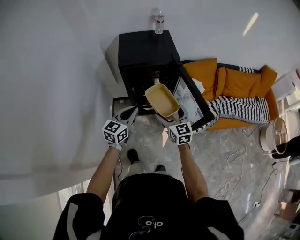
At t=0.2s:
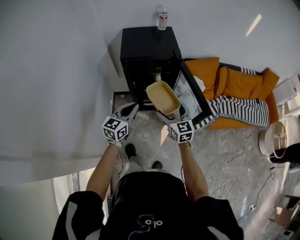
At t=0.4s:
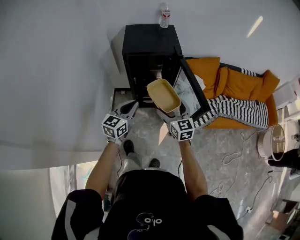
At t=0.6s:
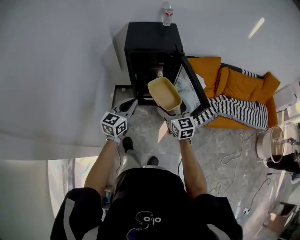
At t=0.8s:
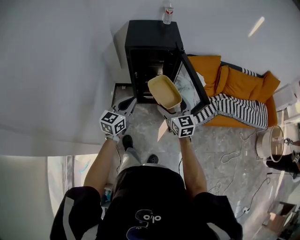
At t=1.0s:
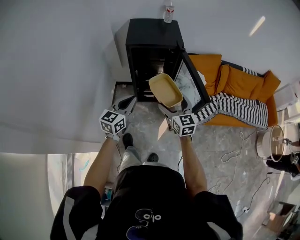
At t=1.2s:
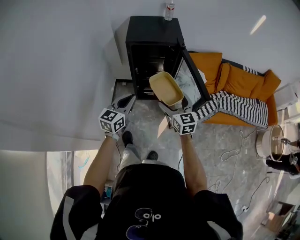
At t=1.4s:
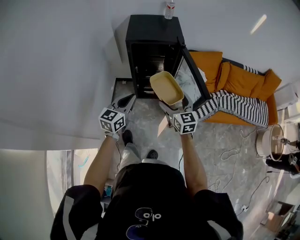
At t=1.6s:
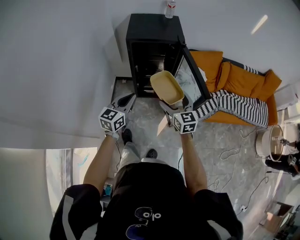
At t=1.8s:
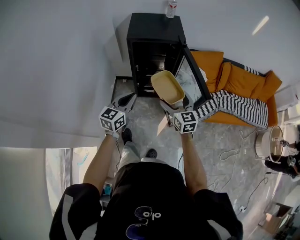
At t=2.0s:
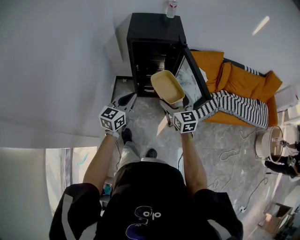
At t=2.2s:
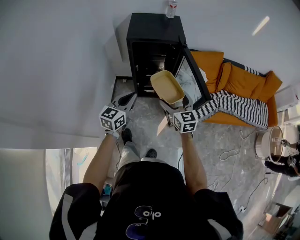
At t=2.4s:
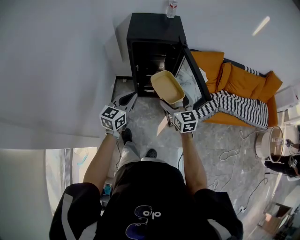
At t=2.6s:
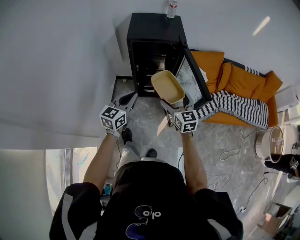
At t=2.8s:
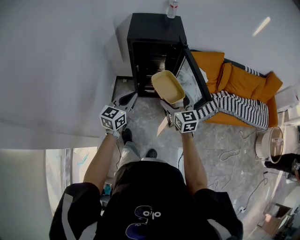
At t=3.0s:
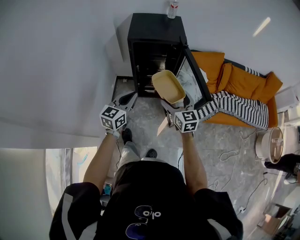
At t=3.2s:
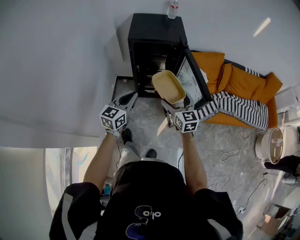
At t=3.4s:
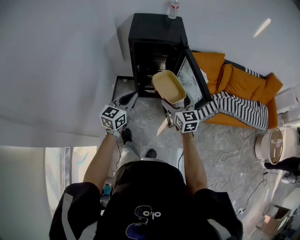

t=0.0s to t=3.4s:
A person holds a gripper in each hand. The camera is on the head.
t=0.0s to t=1.6s: The grippers both shift backward by approximately 10 cm.
t=1.6s to t=3.4s: Neither gripper changes place.

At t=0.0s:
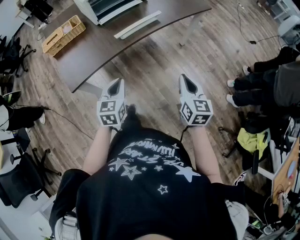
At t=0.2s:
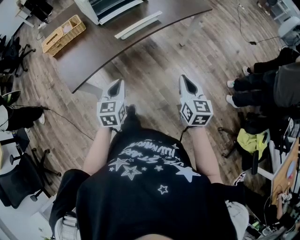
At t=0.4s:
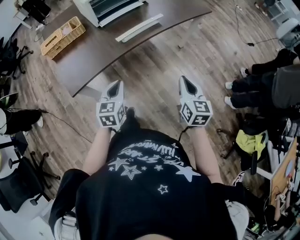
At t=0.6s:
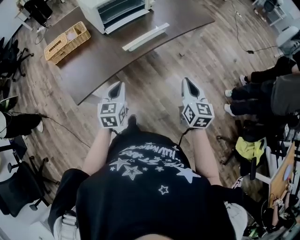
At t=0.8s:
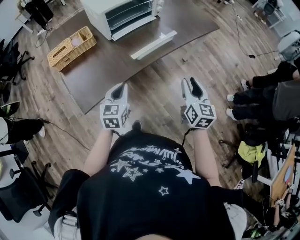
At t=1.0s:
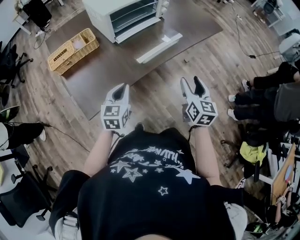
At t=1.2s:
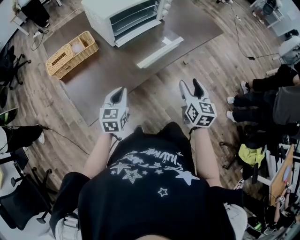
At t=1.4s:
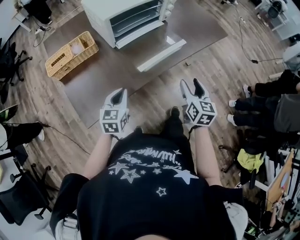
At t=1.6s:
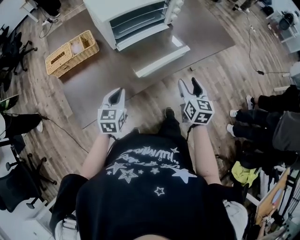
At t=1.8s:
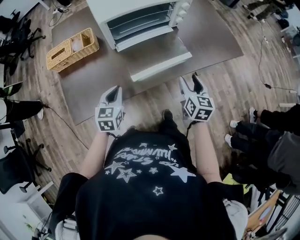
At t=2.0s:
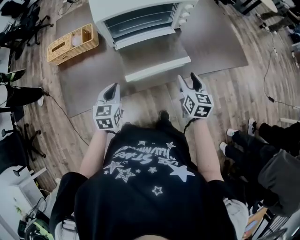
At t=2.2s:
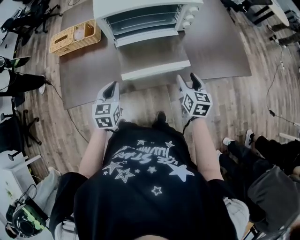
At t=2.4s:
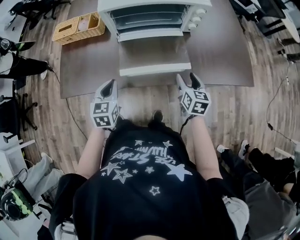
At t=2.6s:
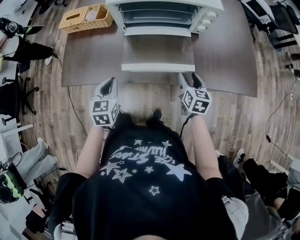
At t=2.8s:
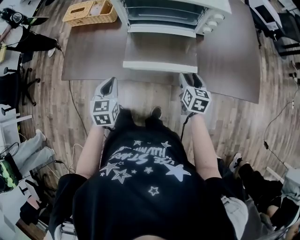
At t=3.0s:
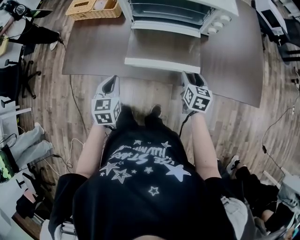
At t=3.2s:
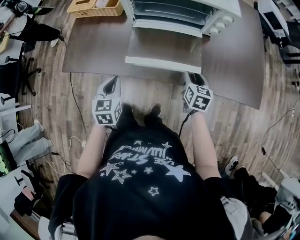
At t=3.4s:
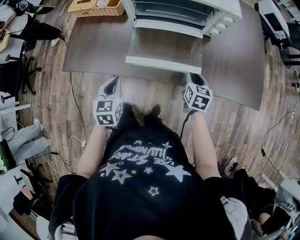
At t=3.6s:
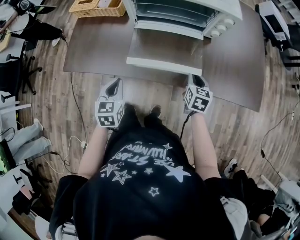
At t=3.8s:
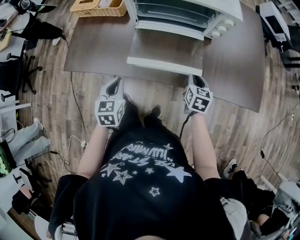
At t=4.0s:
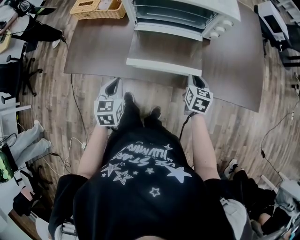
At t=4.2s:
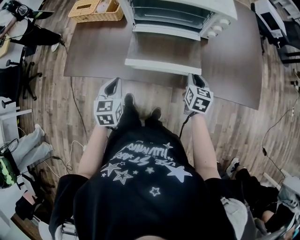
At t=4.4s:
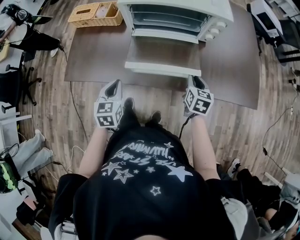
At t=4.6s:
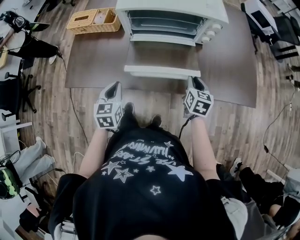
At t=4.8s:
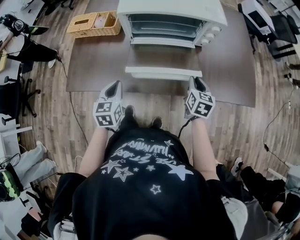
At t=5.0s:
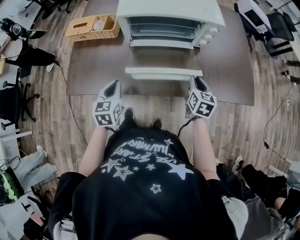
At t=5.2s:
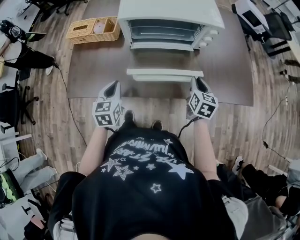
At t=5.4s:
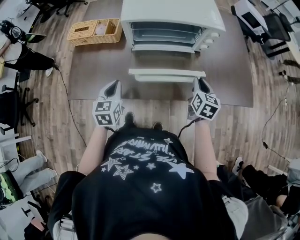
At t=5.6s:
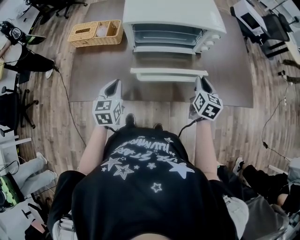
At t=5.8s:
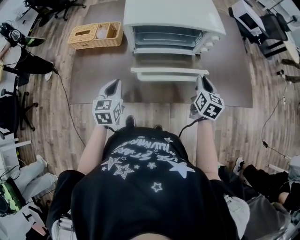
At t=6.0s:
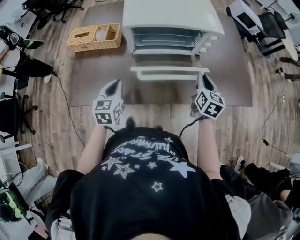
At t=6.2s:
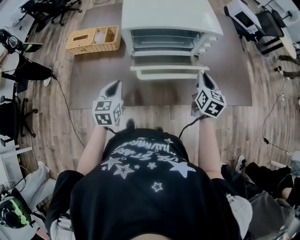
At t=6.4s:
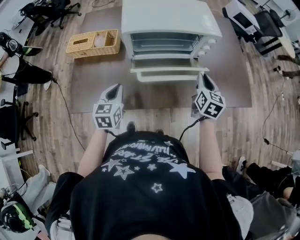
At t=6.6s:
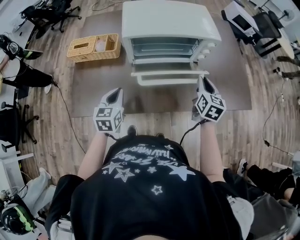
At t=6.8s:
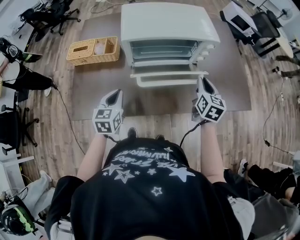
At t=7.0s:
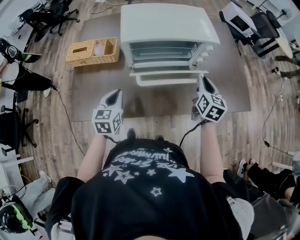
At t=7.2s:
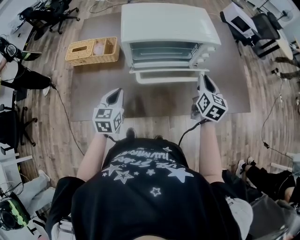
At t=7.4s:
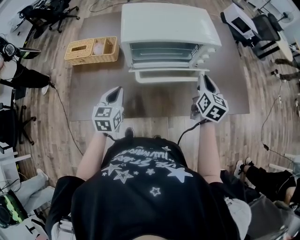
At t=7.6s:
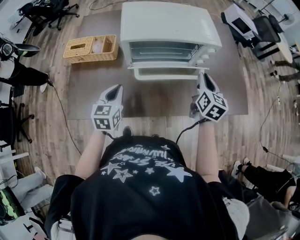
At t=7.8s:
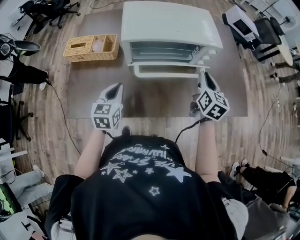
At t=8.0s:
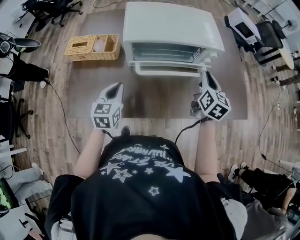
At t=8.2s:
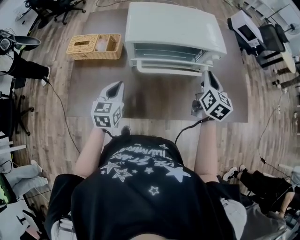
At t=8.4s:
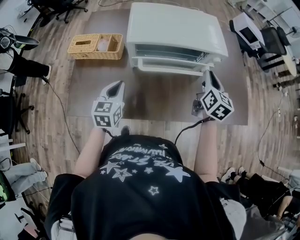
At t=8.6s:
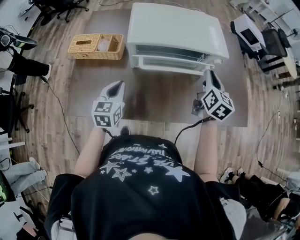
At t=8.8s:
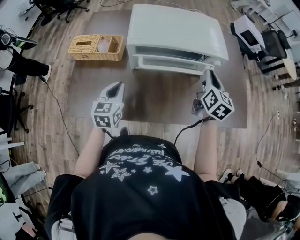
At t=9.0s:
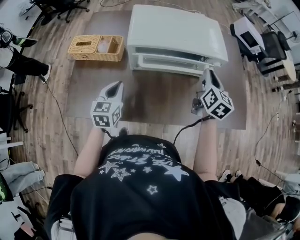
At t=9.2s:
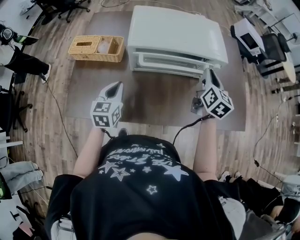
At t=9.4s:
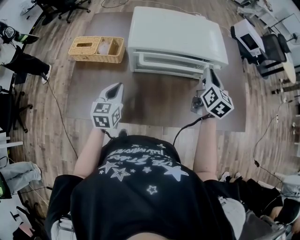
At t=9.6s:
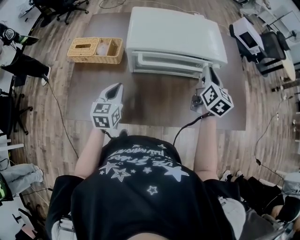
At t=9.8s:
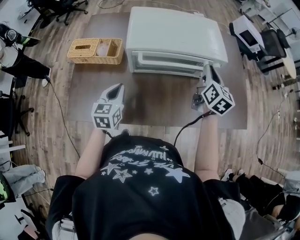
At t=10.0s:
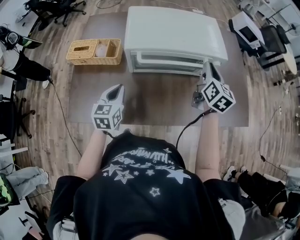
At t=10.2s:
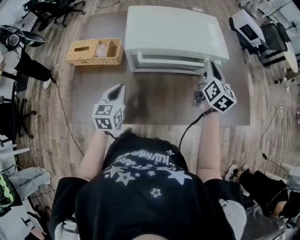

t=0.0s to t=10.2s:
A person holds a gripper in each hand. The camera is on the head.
t=0.0s to t=1.4s: Both grippers move forward and to the left, roughly 20 cm. The right gripper opens up.
t=1.4s to t=3.0s: The right gripper moves approximately 25 cm, and rotates about 40 degrees. The left gripper moves roughly 10 cm, and changes its angle by roughly 50 degrees.
t=3.0s to t=4.4s: The right gripper closes.
t=4.4s to t=5.8s: The left gripper is displaced forward by roughly 10 cm. The right gripper is displaced upward by some 10 cm.
t=5.8s to t=7.2s: The right gripper is displaced upward by roughly 5 cm.
t=7.2s to t=8.8s: The right gripper travels forward by approximately 5 cm.
t=8.8s to t=10.2s: The grippers stay close to where they were, moving slightly.

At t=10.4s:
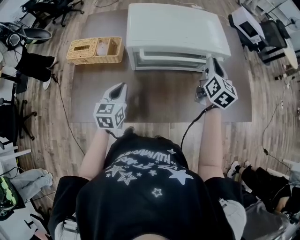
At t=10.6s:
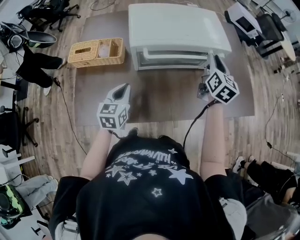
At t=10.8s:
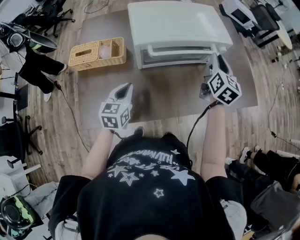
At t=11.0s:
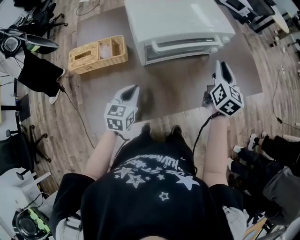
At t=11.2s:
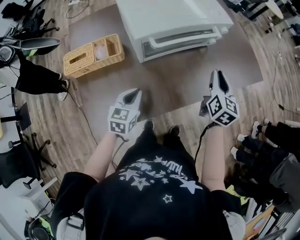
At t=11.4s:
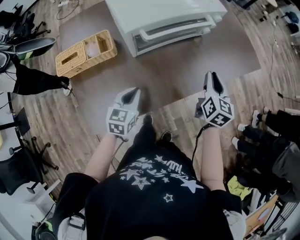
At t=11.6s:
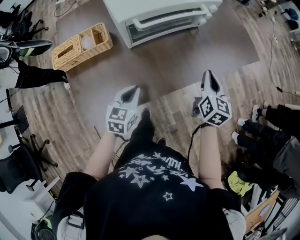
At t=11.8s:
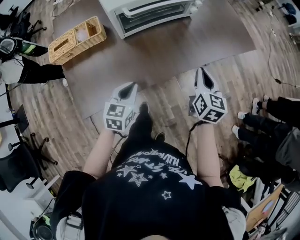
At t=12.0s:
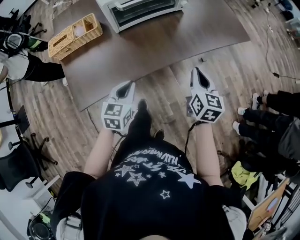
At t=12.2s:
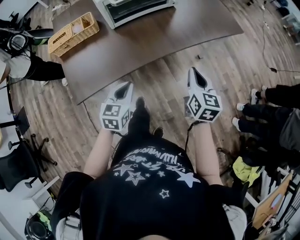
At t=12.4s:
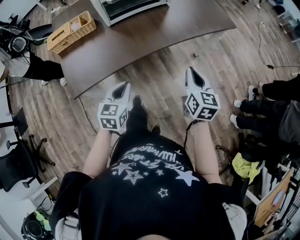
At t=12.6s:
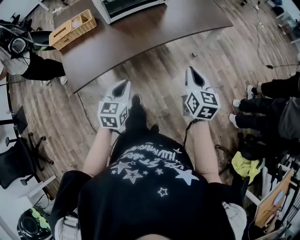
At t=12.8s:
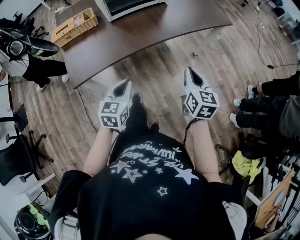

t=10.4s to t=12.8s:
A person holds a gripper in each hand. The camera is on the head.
t=10.4s to t=11.6s: The right gripper ends up some 25 cm from where it was, and turns by about 20 degrees; the left gripper ends up approximately 10 cm from where it was, and changes its angle by roughly 30 degrees.
t=11.6s to t=12.8s: Both grippers move backward and to the right, approximately 25 cm.

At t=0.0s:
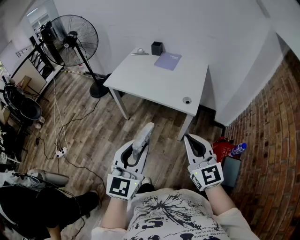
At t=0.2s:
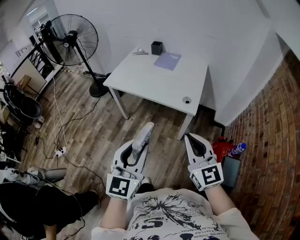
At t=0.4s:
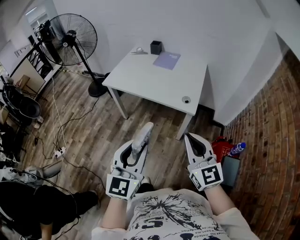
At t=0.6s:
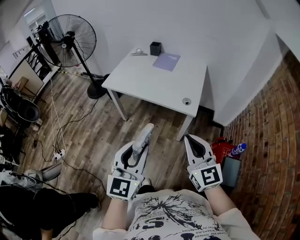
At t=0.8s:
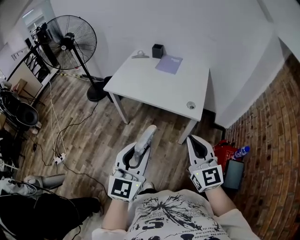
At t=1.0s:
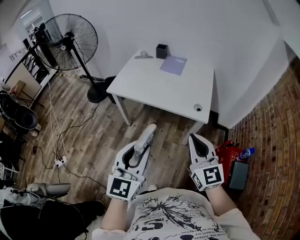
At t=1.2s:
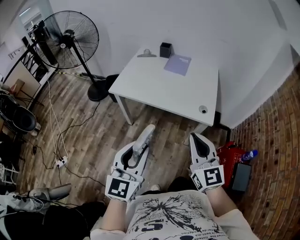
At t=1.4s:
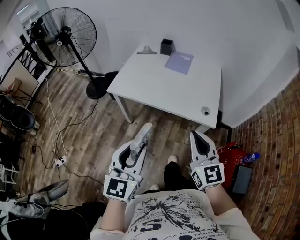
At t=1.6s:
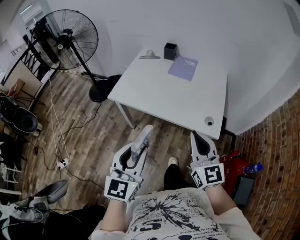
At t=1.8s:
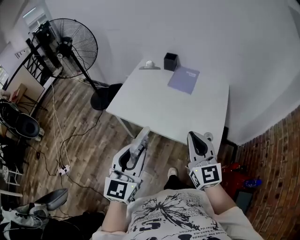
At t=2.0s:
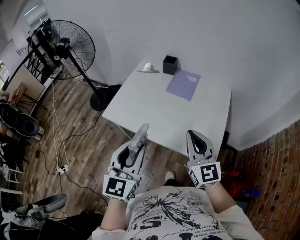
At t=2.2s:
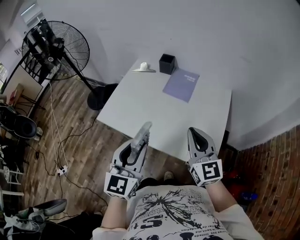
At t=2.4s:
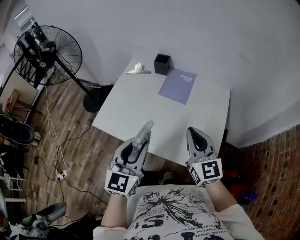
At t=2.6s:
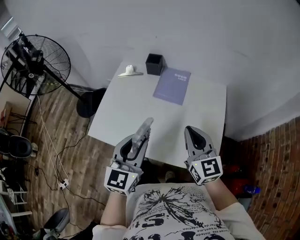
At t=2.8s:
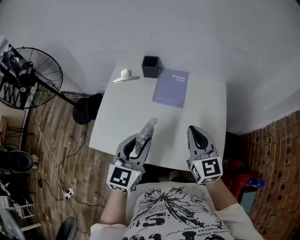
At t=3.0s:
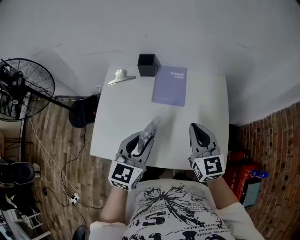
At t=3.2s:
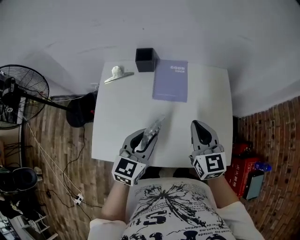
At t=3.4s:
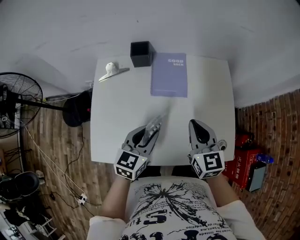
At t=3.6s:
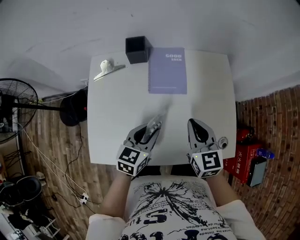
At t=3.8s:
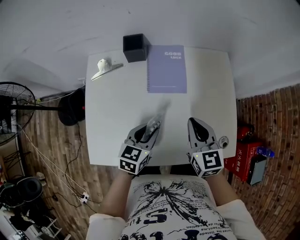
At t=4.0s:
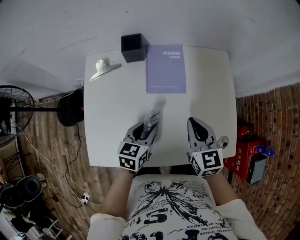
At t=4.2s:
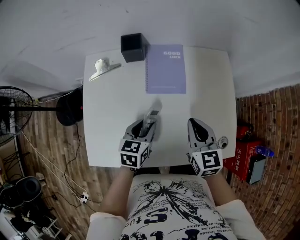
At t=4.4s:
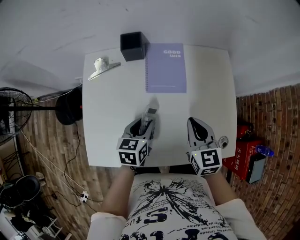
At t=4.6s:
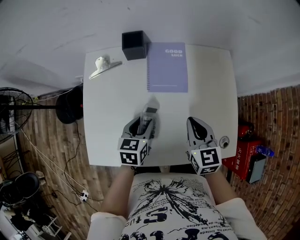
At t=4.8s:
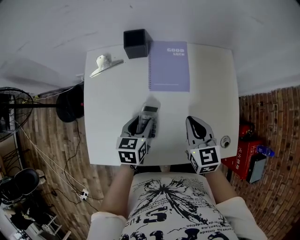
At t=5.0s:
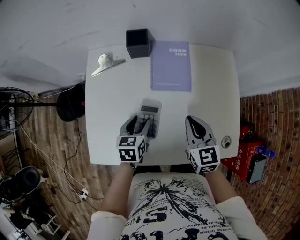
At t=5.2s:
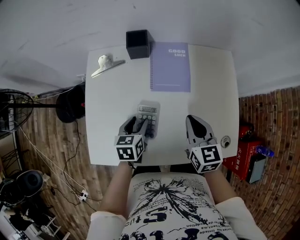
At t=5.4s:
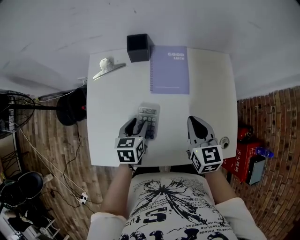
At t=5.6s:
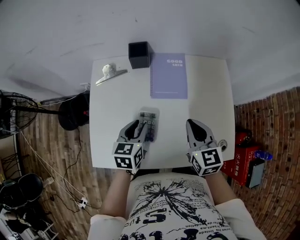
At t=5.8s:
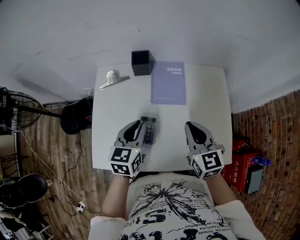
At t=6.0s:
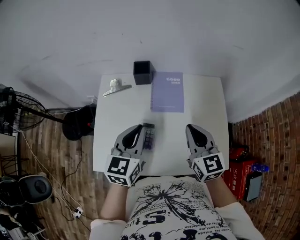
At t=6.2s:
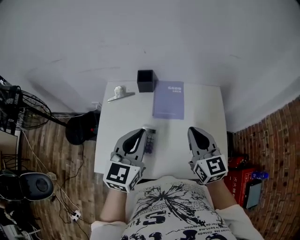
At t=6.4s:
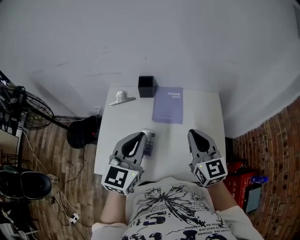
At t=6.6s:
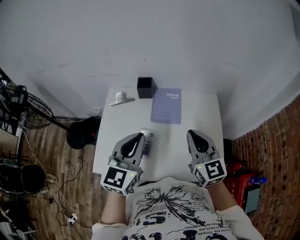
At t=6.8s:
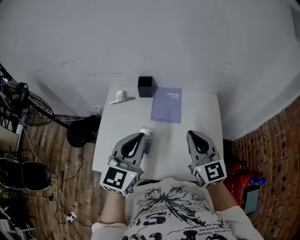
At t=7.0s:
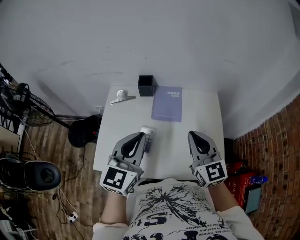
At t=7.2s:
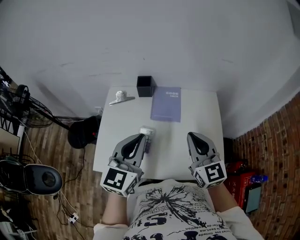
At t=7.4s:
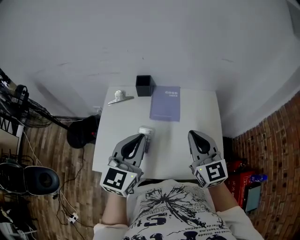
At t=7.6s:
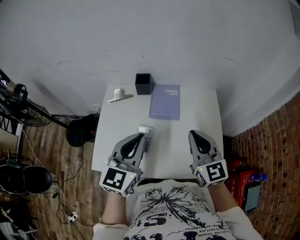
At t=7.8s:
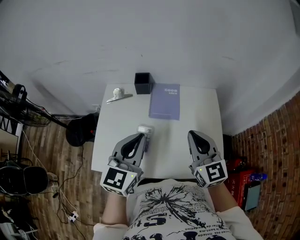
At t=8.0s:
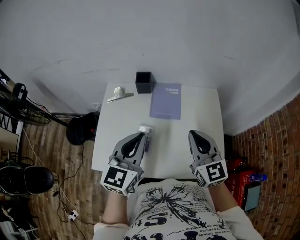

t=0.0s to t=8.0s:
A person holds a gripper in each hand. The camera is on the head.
t=0.0s to t=1.6s: The grippers both shift forward and to the left by some 25 cm.
t=1.6s to t=3.2s: The right gripper moves roughly 40 cm, and rotates roughly 20 degrees. Meanwhile the left gripper changes place by approximately 50 cm, and turns by approximately 30 degrees.
t=3.2s to t=4.8s: The left gripper is displaced downward and forward by roughly 15 cm, and turns by some 20 degrees. Meanwhile the right gripper heads downward, covering roughly 10 cm.
t=4.8s to t=6.4s: The left gripper travels upward by approximately 30 cm, tips its fingers upward by roughly 30 degrees, and closes its fingers. Meanwhile the right gripper shifts about 20 cm upward, and rotates about 20 degrees.
t=6.4s to t=8.0s: The grippers stay close to where they were, moving slightly.
